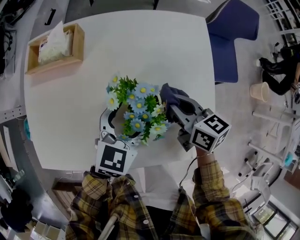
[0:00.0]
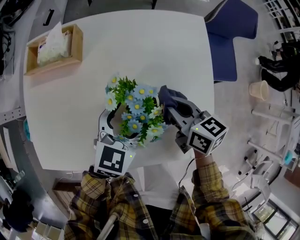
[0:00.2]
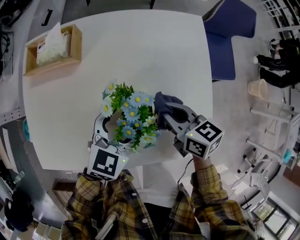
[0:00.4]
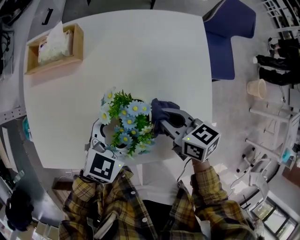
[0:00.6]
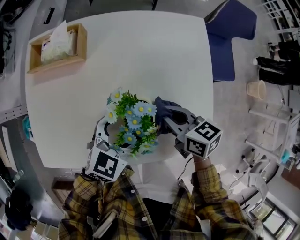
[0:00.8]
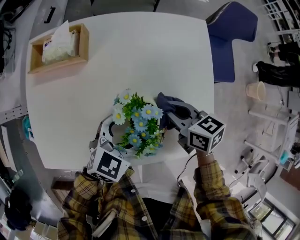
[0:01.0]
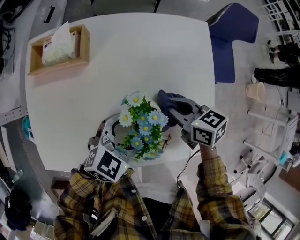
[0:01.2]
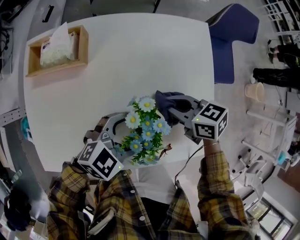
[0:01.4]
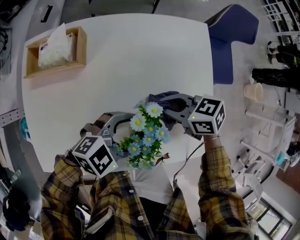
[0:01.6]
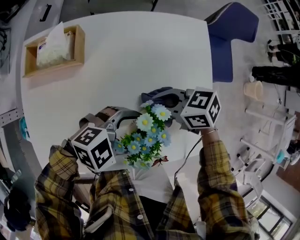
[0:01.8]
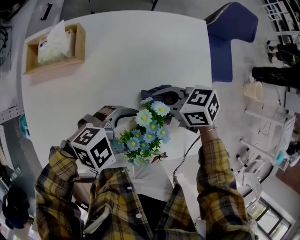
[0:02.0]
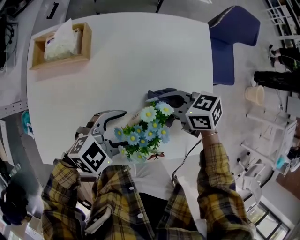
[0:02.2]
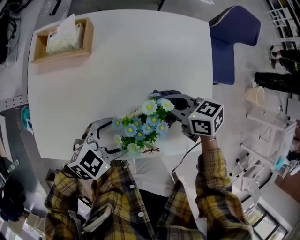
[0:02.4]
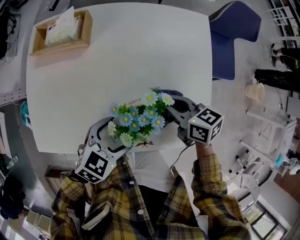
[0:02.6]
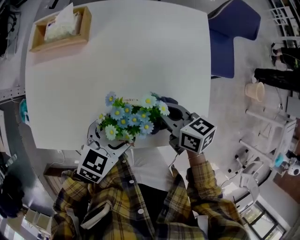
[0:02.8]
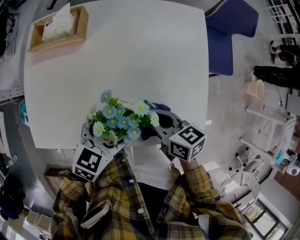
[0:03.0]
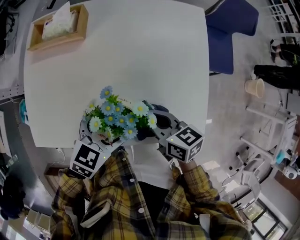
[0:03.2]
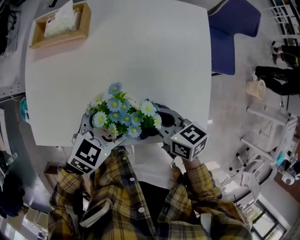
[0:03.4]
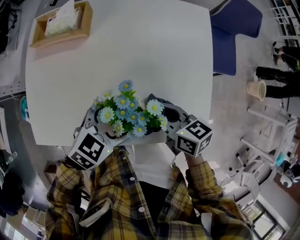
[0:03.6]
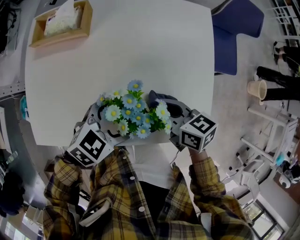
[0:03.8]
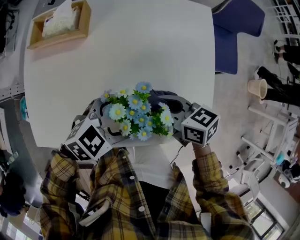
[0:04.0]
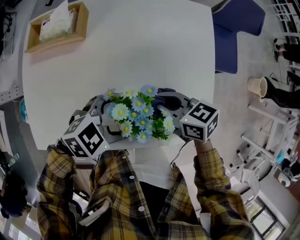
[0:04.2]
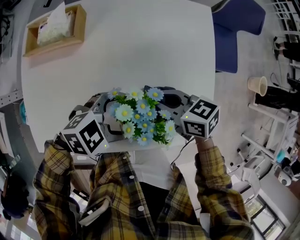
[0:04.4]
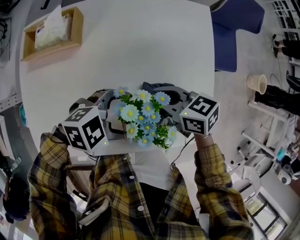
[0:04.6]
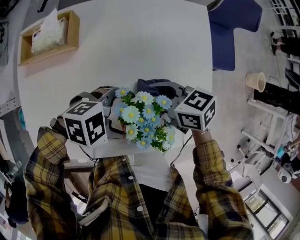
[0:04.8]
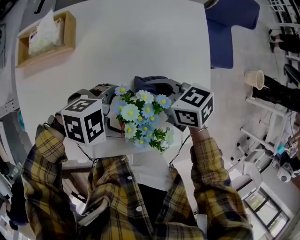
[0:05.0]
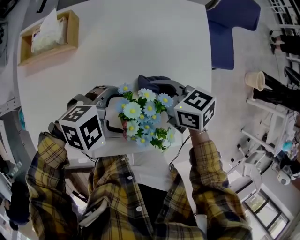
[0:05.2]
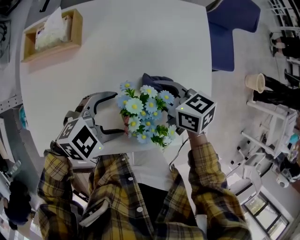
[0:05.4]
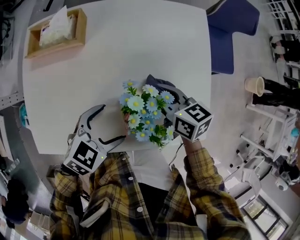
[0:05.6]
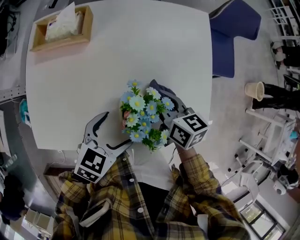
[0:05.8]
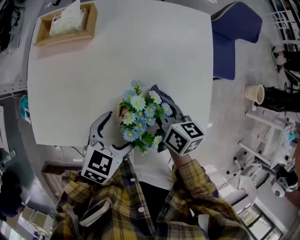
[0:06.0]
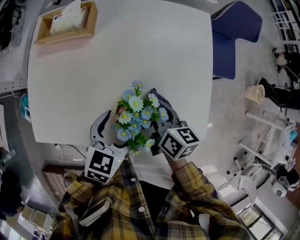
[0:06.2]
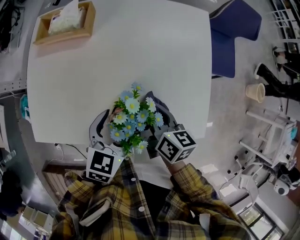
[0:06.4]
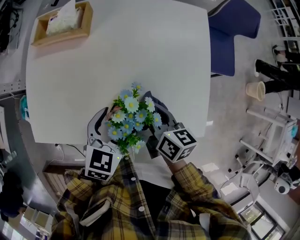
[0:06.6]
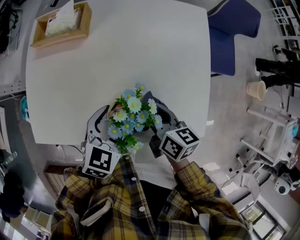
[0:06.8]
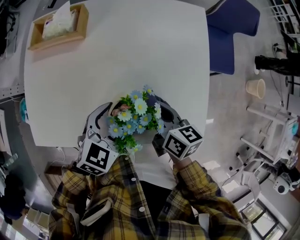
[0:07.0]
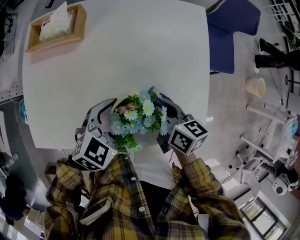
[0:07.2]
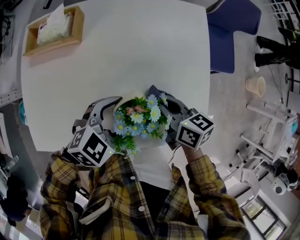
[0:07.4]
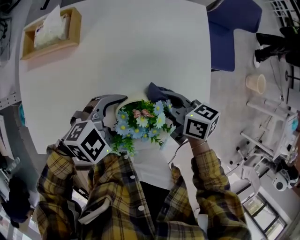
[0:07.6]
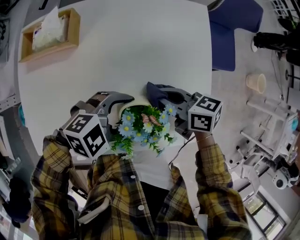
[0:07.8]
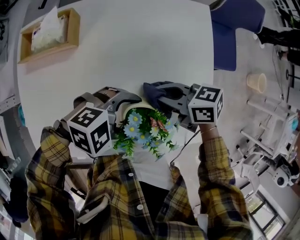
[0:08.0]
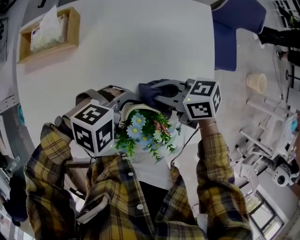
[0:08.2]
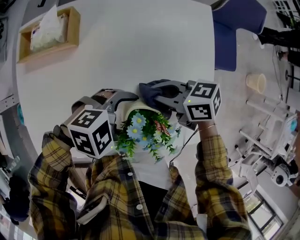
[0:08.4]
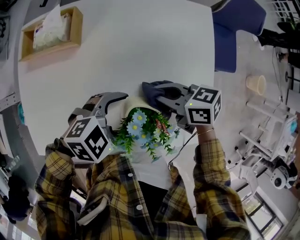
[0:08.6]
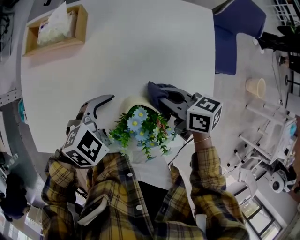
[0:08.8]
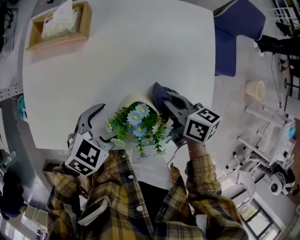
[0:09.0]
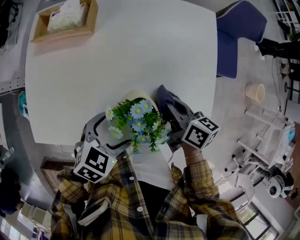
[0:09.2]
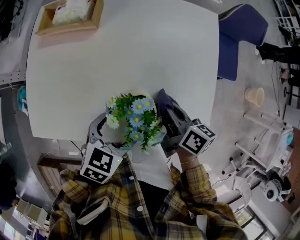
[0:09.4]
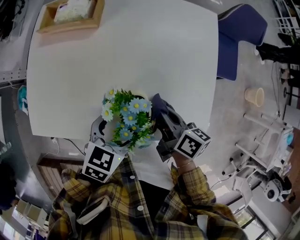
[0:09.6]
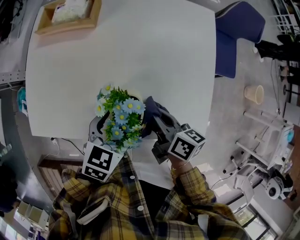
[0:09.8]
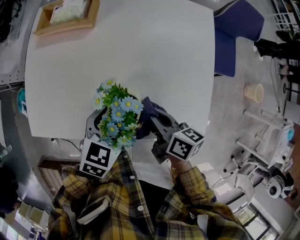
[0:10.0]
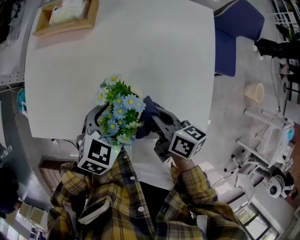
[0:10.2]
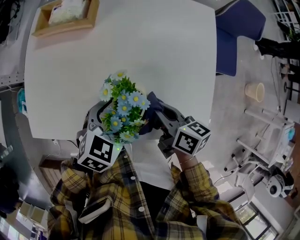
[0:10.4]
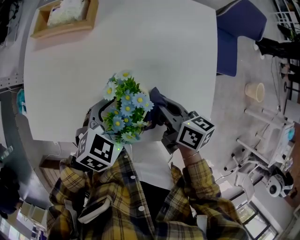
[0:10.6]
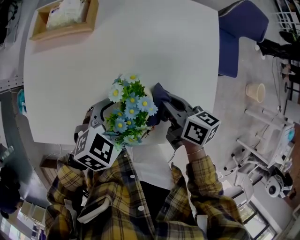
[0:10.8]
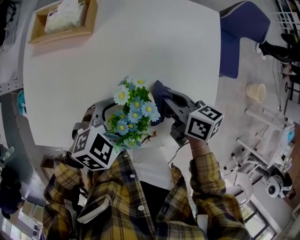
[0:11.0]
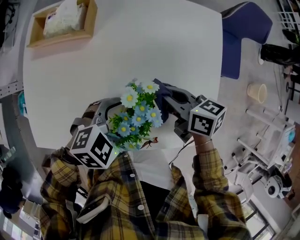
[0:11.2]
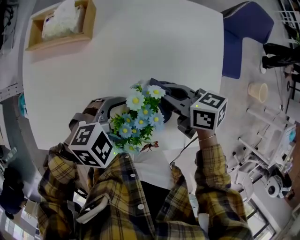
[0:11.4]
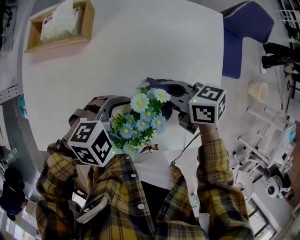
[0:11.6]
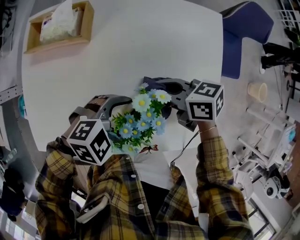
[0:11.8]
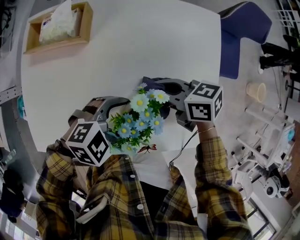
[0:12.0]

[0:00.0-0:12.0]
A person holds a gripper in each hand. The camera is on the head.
0:00.0 to 0:01.6: The left gripper moves roughly 5 cm, and changes its angle by some 50 degrees. The right gripper shifts by approximately 5 cm, and turns by about 30 degrees.
0:01.6 to 0:03.0: The right gripper shifts by roughly 10 cm, and changes its angle by some 20 degrees. The left gripper ends up roughly 5 cm from where it was, and turns by roughly 50 degrees.
0:03.0 to 0:04.4: The right gripper shifts by approximately 5 cm; the left gripper changes its angle by roughly 40 degrees.
0:04.4 to 0:06.0: The left gripper changes its angle by some 40 degrees; the right gripper rotates some 40 degrees.
0:06.0 to 0:07.6: The left gripper shifts by about 5 cm, and swivels some 40 degrees, while the right gripper changes its angle by roughly 20 degrees.
0:07.6 to 0:09.0: The left gripper moves roughly 5 cm, and changes its angle by approximately 30 degrees.
0:09.0 to 0:10.4: The right gripper shifts some 10 cm backward.
0:10.4 to 0:12.0: The right gripper shifts by some 10 cm, and turns by approximately 30 degrees, while the left gripper turns by approximately 40 degrees.

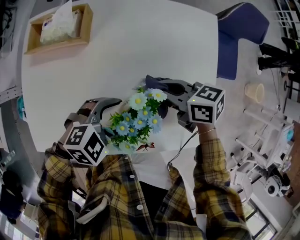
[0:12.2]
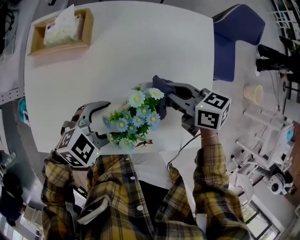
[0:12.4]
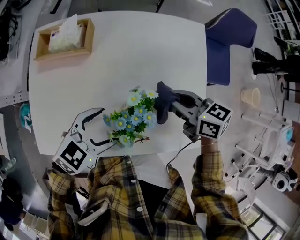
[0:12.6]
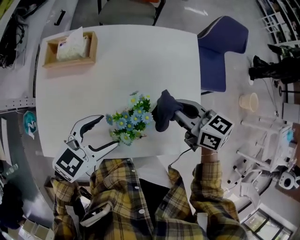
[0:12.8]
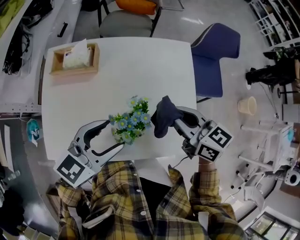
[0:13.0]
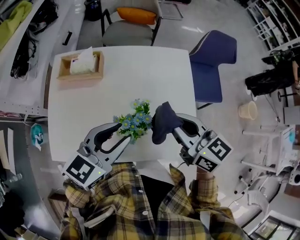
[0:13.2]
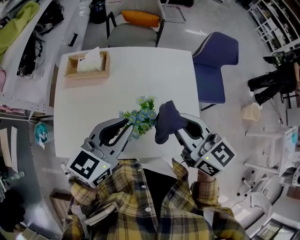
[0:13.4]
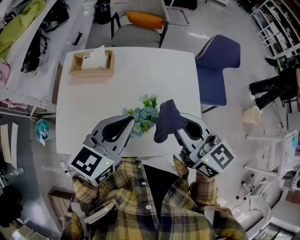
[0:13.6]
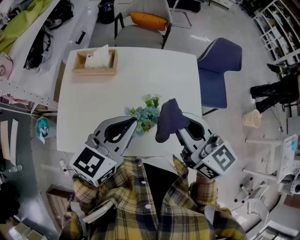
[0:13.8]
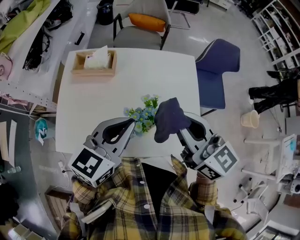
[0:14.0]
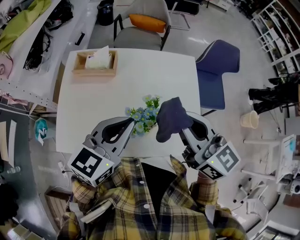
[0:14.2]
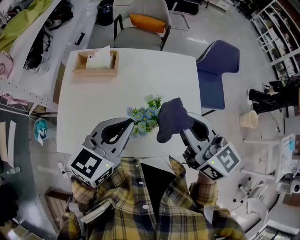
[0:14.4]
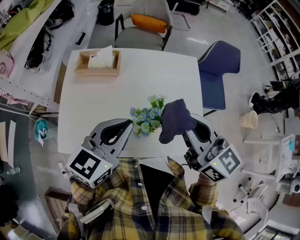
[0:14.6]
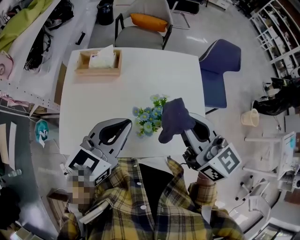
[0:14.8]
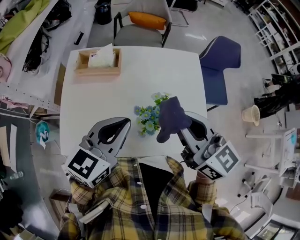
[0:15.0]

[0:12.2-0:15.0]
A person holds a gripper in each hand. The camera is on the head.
0:12.2 to 0:13.6: Both grippers move upward, about 25 cm. The right gripper swivels approximately 40 degrees, while the left gripper tips its fingers upward by about 30 degrees, and closes its fingers.
0:13.6 to 0:15.0: The left gripper travels to the left by roughly 5 cm. Meanwhile the right gripper changes place by some 5 cm.

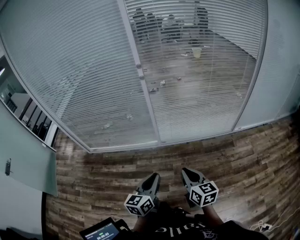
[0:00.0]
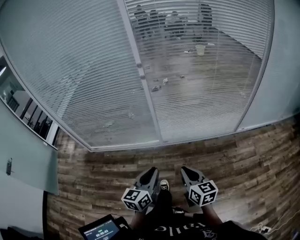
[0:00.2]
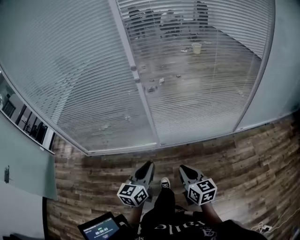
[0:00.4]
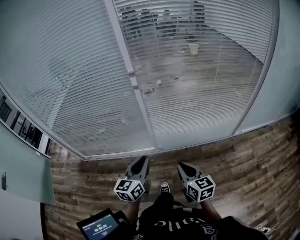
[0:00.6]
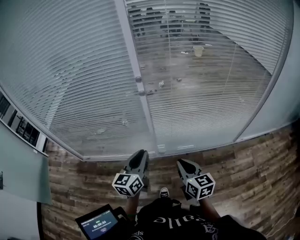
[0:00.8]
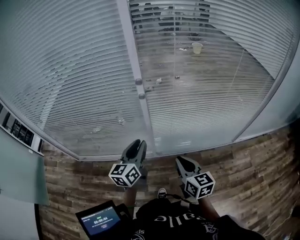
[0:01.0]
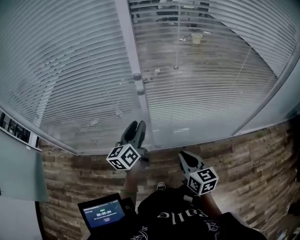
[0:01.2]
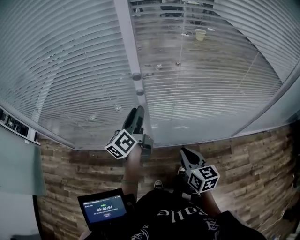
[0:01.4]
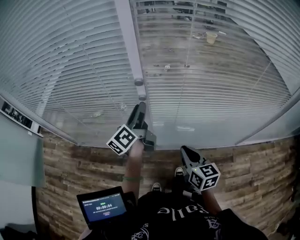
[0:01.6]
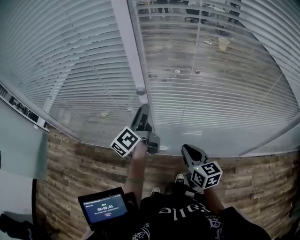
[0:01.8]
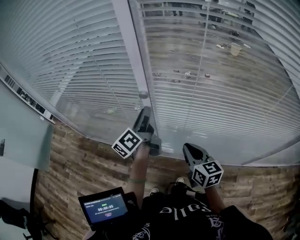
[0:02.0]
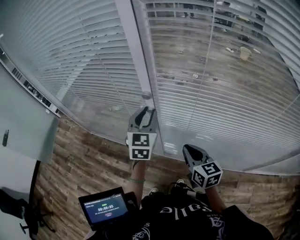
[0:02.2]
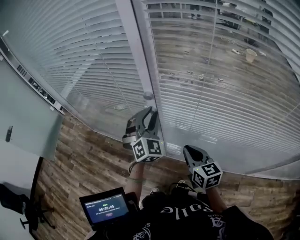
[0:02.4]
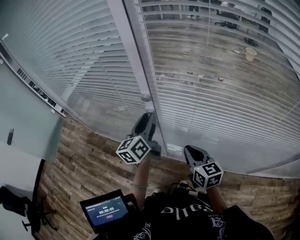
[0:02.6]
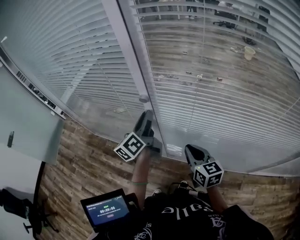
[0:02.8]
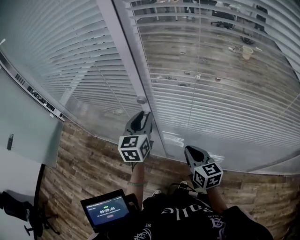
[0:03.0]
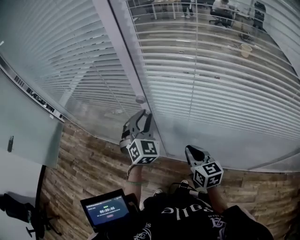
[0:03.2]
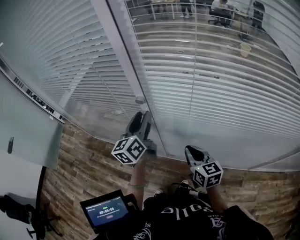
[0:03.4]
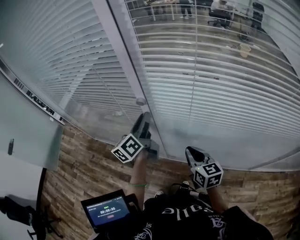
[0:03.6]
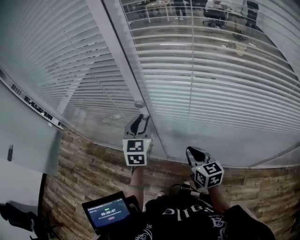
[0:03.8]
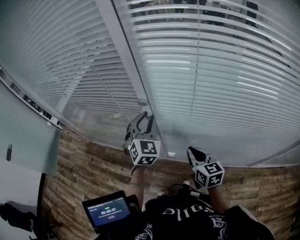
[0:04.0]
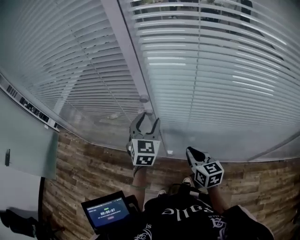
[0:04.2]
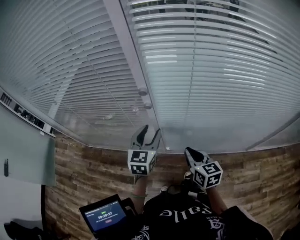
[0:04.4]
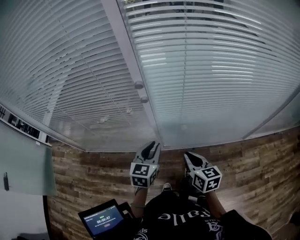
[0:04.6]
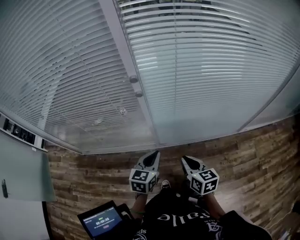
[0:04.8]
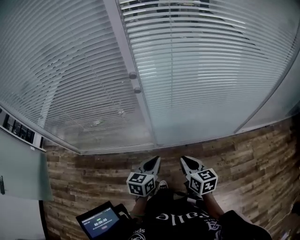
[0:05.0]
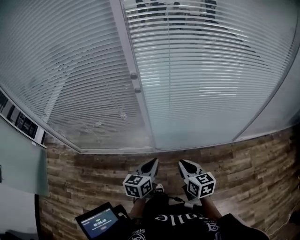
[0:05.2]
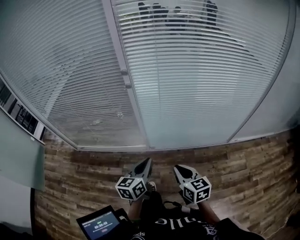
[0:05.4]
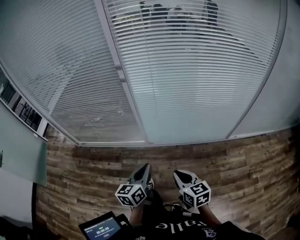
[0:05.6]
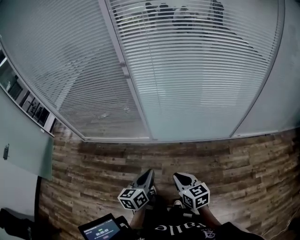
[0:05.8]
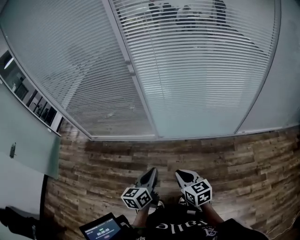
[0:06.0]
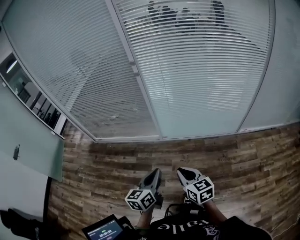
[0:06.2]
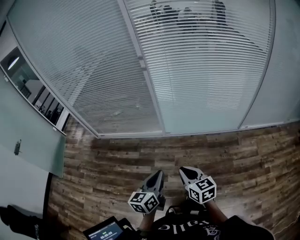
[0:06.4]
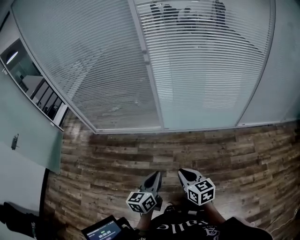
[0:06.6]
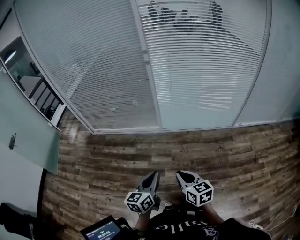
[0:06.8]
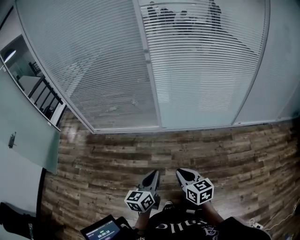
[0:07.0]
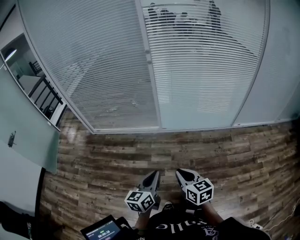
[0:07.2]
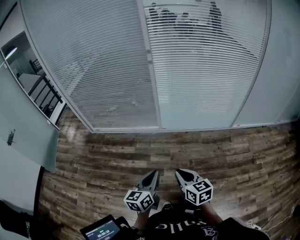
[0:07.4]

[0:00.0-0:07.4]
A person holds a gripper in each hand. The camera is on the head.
0:00.0 to 0:01.4: The two grippers travel together, forward, roughly 50 cm. The left gripper rotates about 30 degrees, and opens its fingers.
0:01.4 to 0:03.0: The left gripper travels forward by roughly 5 cm, and rotates around the line of its fingers by approximately 40 degrees, clockwise from behind. The right gripper goes approximately 15 cm forward and to the right, and changes its angle by some 20 degrees.
0:03.0 to 0:04.4: The right gripper shifts roughly 5 cm backward. The left gripper goes roughly 10 cm backward and downward, and opens.
0:04.4 to 0:06.0: The pair of grippers is taken backward, roughly 60 cm. The left gripper rotates approximately 30 degrees, and closes up.
0:06.0 to 0:07.4: Both grippers travel together backward and to the left, roughly 25 cm.

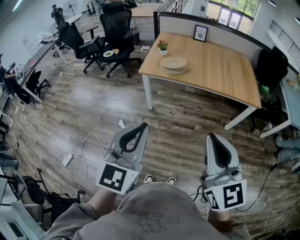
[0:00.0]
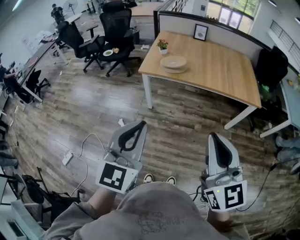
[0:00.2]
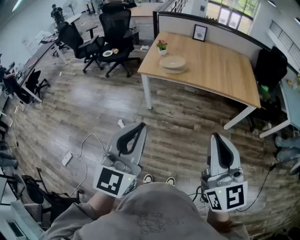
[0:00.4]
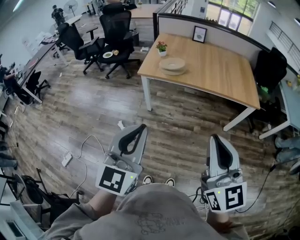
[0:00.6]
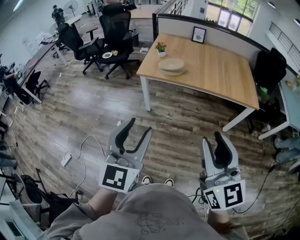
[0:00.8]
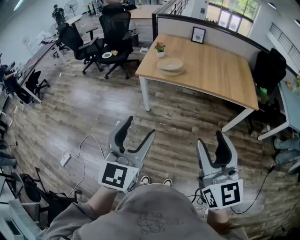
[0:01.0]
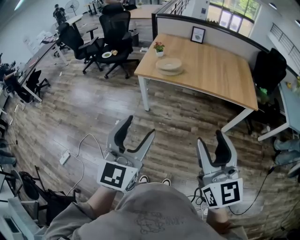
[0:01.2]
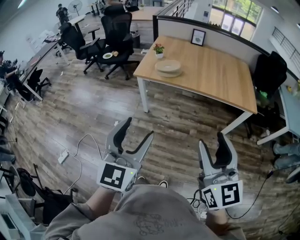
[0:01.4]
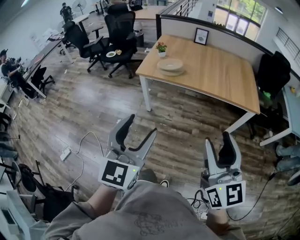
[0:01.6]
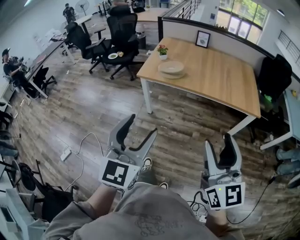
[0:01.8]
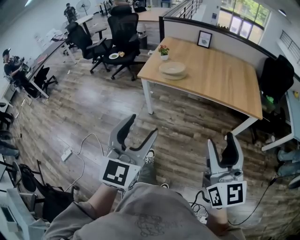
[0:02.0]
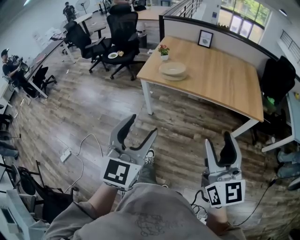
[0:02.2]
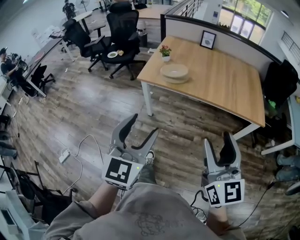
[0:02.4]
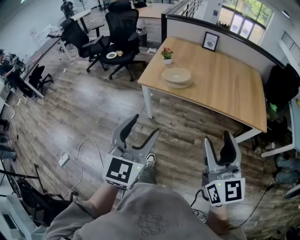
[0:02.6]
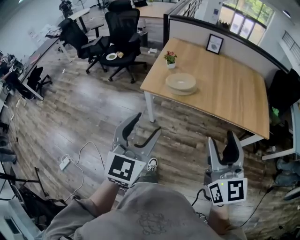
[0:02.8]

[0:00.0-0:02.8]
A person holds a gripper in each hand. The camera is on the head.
0:00.0 to 0:01.4: The two grippers go some 5 cm to the right. The right gripper opens; the left gripper opens up.
0:01.4 to 0:02.8: The grippers both shift forward by some 25 cm.
